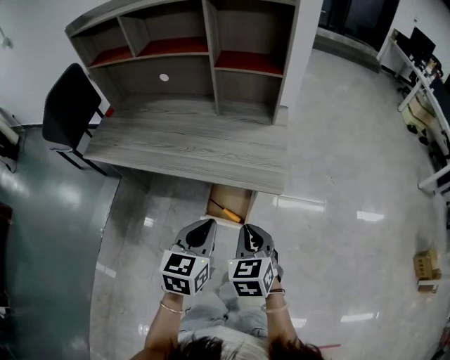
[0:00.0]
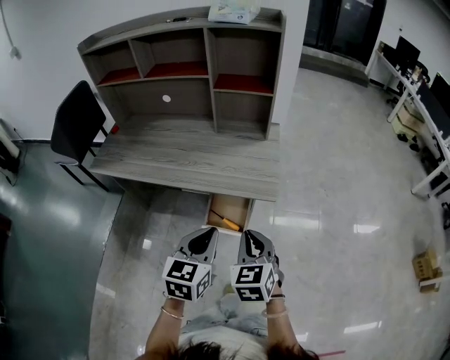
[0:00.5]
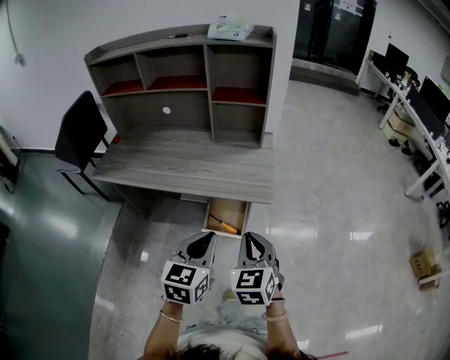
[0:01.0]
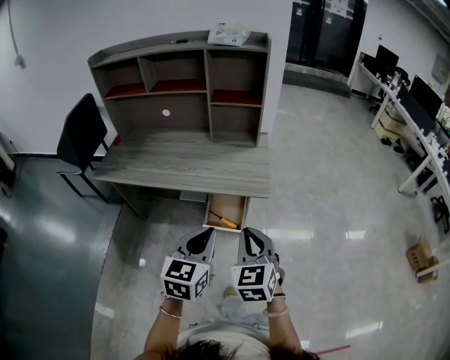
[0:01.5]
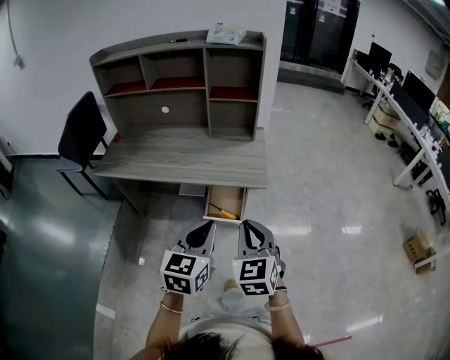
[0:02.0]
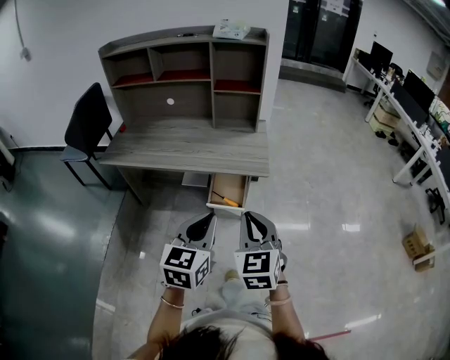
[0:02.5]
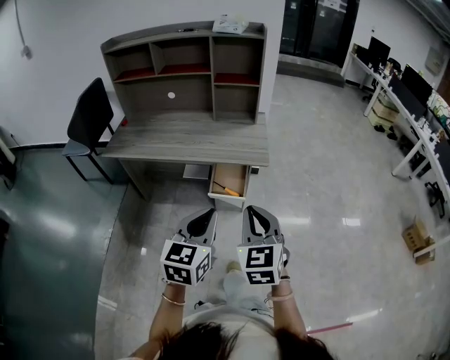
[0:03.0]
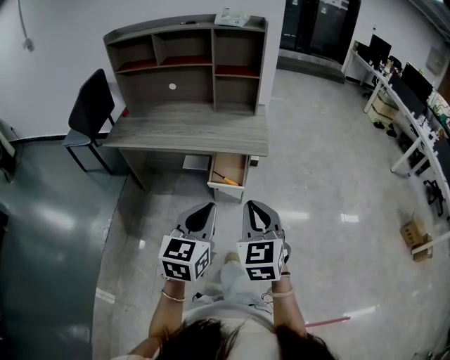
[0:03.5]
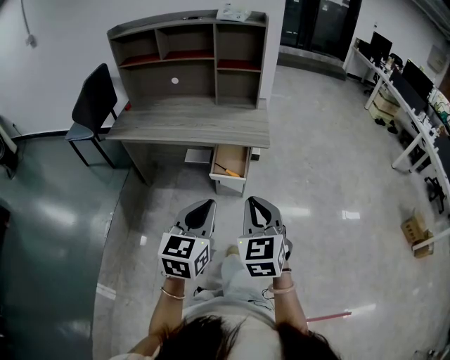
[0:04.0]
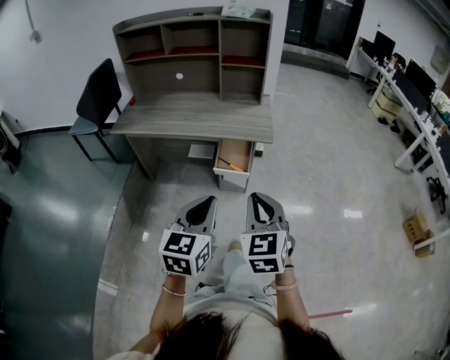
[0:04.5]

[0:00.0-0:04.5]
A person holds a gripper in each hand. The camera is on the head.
0:00.0 to 0:02.0: The grippers both shift backward and upward by some 20 cm.
0:02.0 to 0:04.5: The grippers both shift backward by roughly 15 cm.

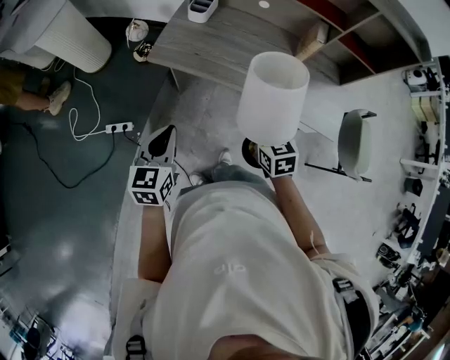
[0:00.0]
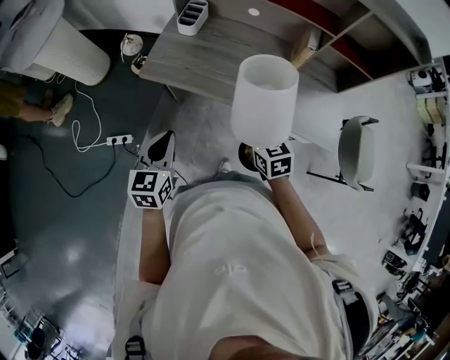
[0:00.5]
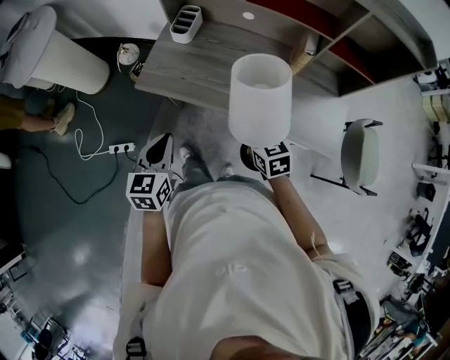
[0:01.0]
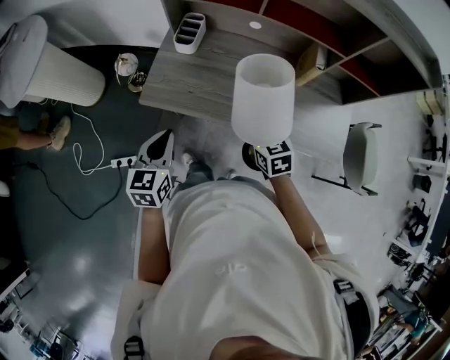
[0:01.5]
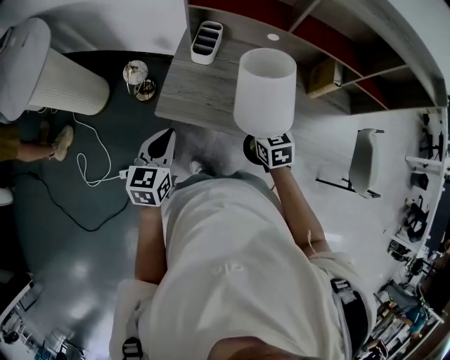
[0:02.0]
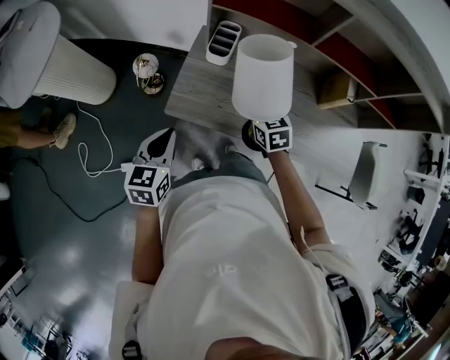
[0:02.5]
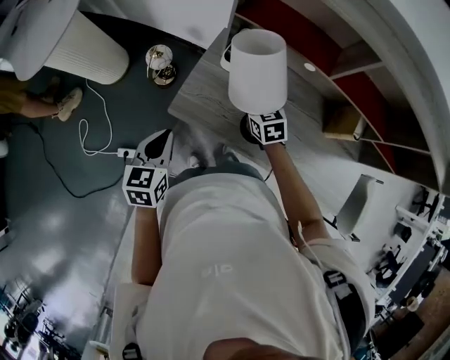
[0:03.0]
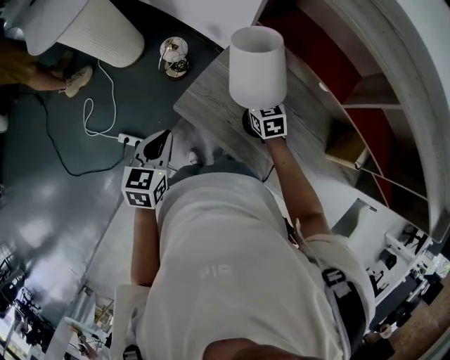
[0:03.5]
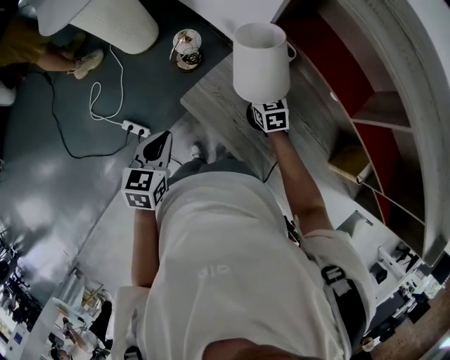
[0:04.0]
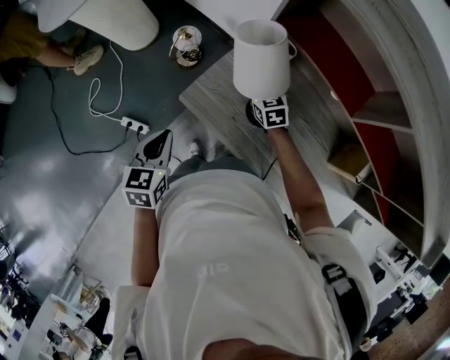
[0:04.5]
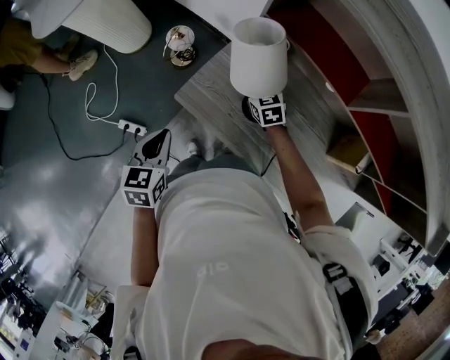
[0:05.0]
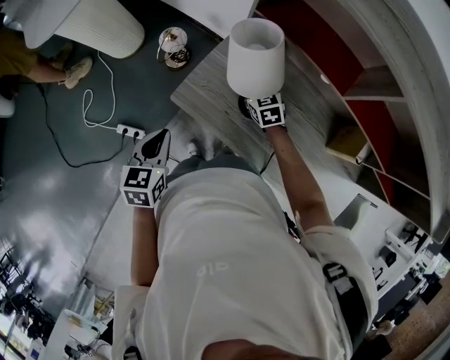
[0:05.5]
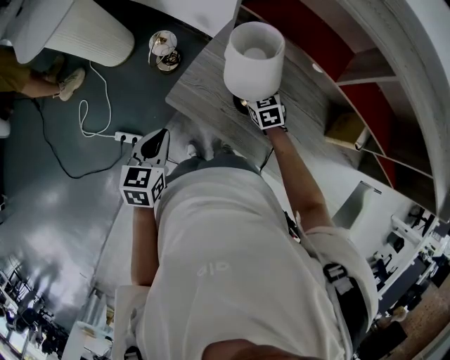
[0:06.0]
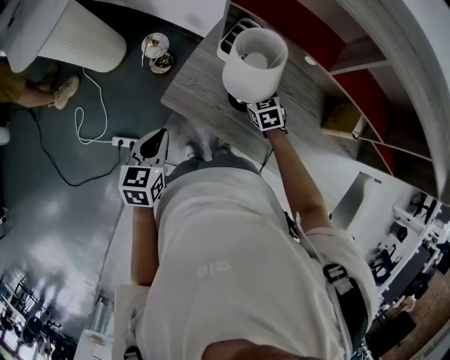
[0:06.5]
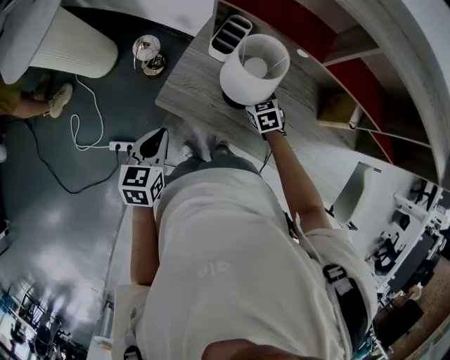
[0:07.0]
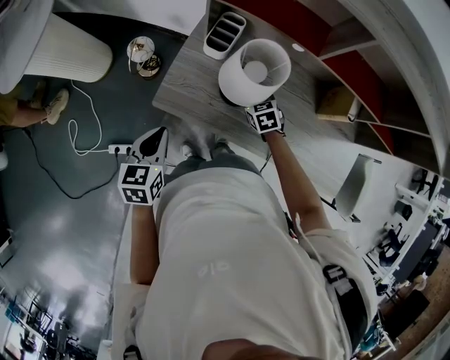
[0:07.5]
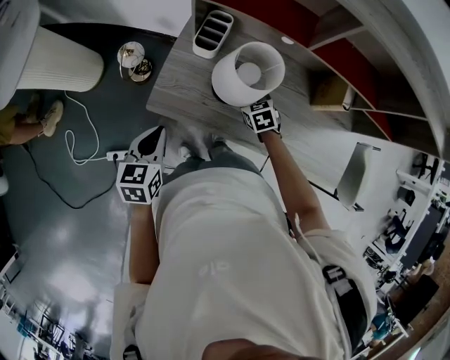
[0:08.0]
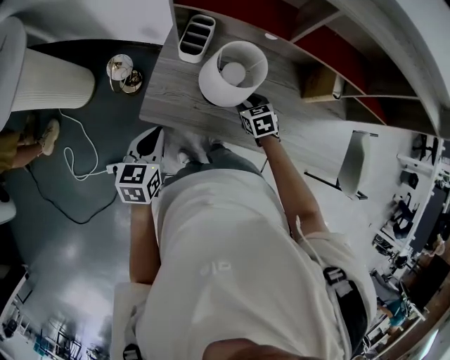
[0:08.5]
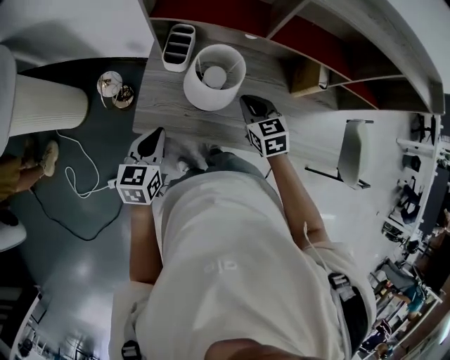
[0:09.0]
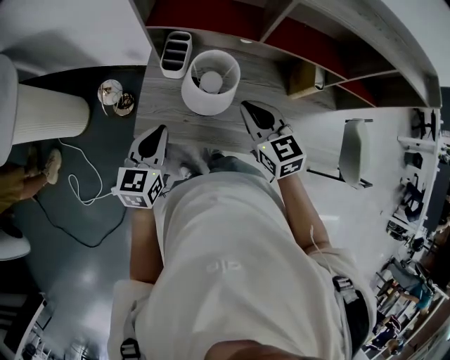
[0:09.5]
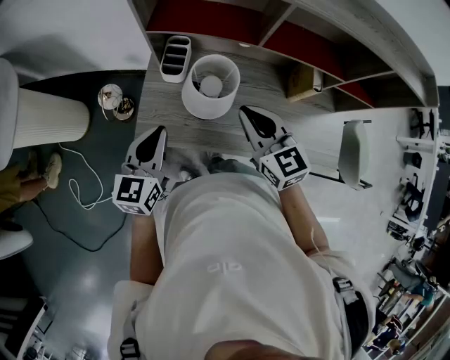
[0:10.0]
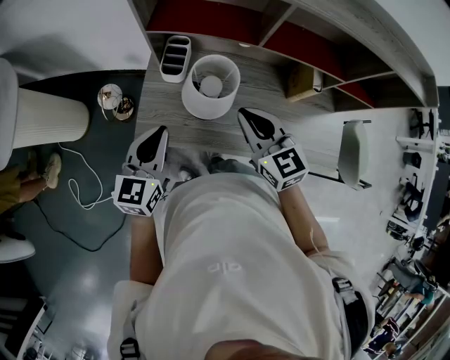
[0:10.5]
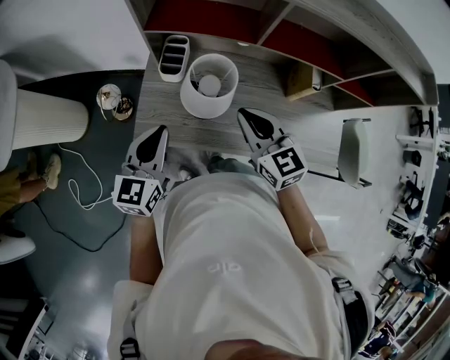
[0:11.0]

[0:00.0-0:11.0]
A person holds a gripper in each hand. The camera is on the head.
0:00.0 to 0:02.0: The two grippers go about 25 cm forward.
0:02.0 to 0:03.5: The right gripper heads forward, covering approximately 25 cm, and rotates approximately 30 degrees. Meanwhile the left gripper is displaced forward by roughly 5 cm, and turns by roughly 20 degrees.
0:03.5 to 0:05.5: There are only small adjustments of the grippers.
0:05.5 to 0:07.5: The right gripper shifts roughly 15 cm backward and to the right.
0:07.5 to 0:09.0: The right gripper is displaced upward and to the right by some 15 cm, rotates roughly 20 degrees, and closes up. Meanwhile the left gripper is displaced to the right by roughly 5 cm.
0:09.0 to 0:11.0: Both grippers travel together upward, roughly 10 cm.

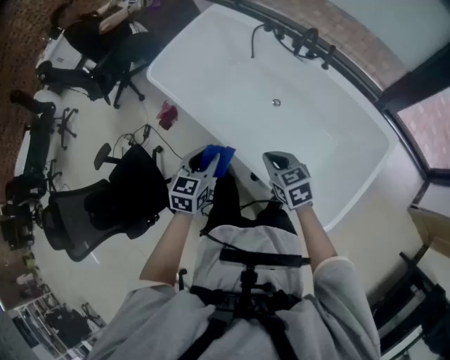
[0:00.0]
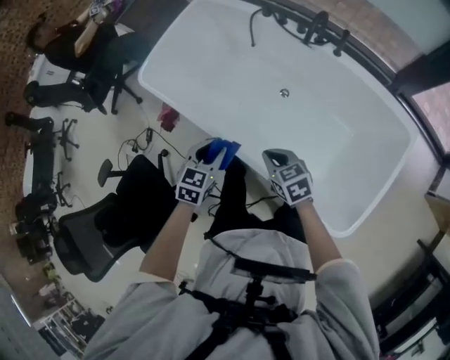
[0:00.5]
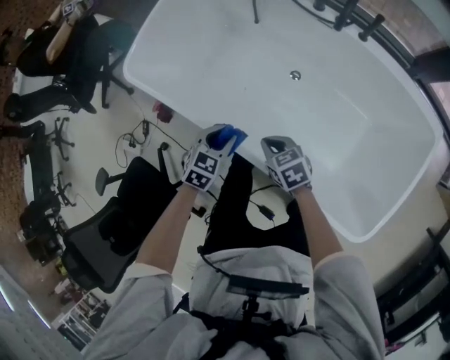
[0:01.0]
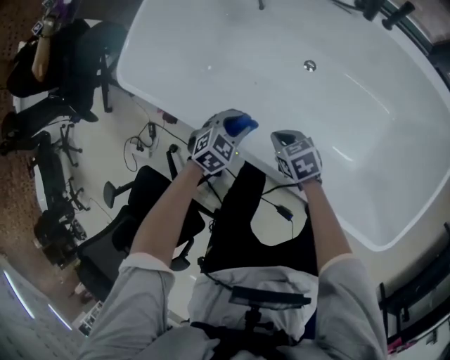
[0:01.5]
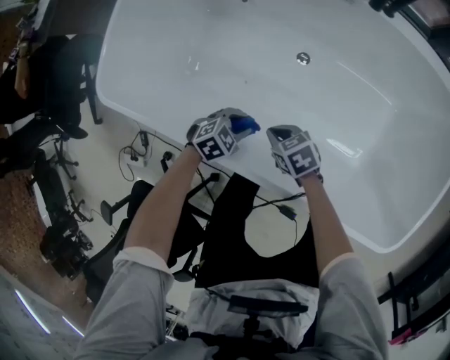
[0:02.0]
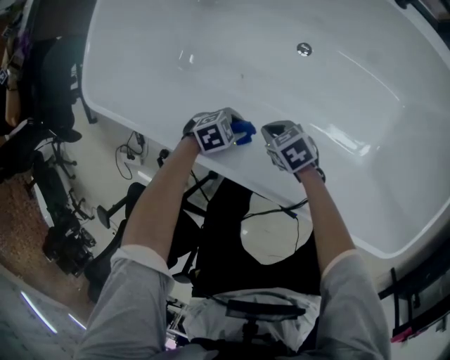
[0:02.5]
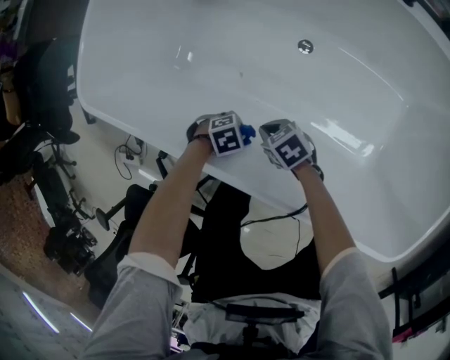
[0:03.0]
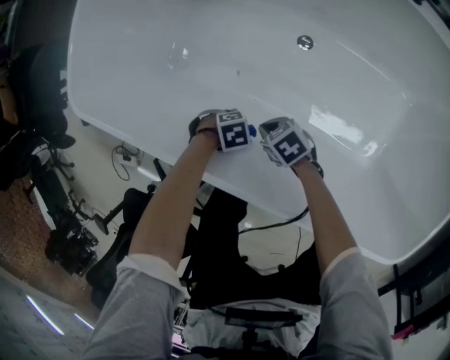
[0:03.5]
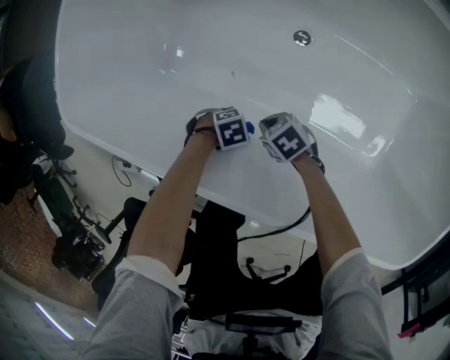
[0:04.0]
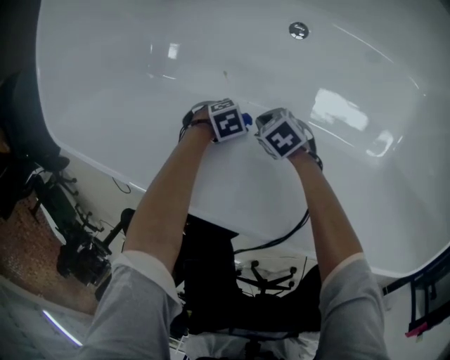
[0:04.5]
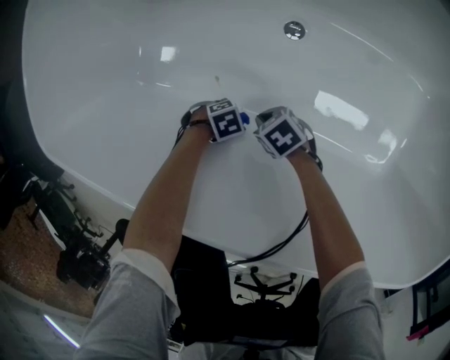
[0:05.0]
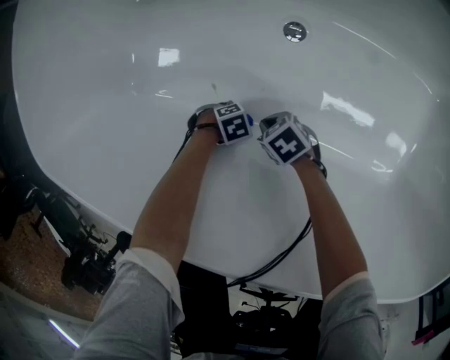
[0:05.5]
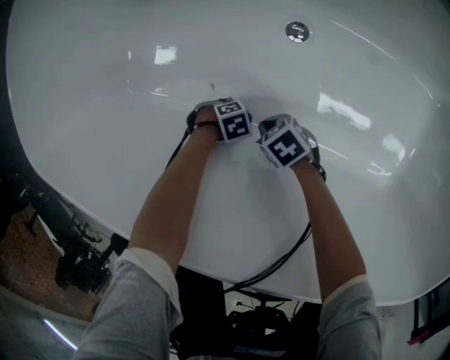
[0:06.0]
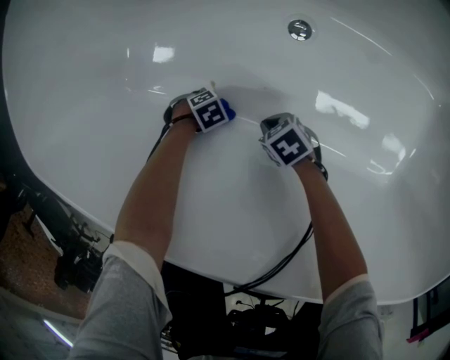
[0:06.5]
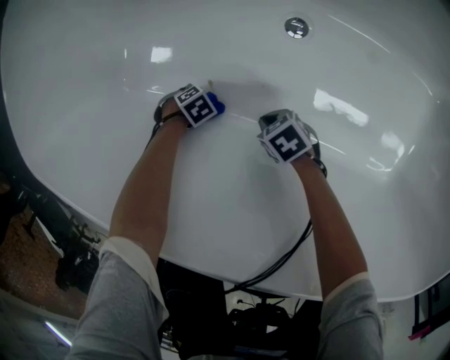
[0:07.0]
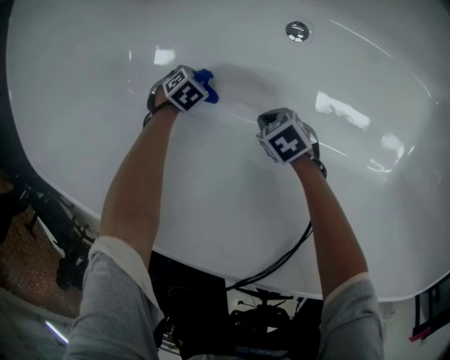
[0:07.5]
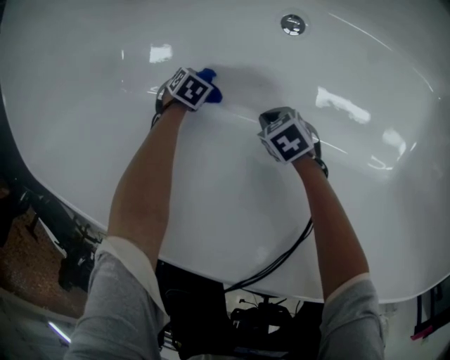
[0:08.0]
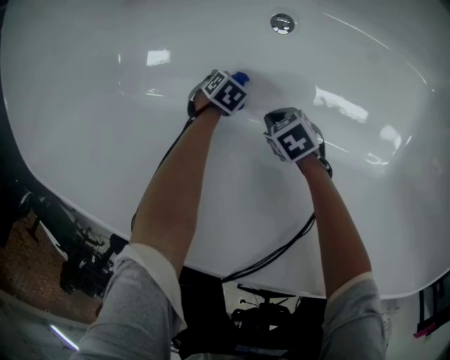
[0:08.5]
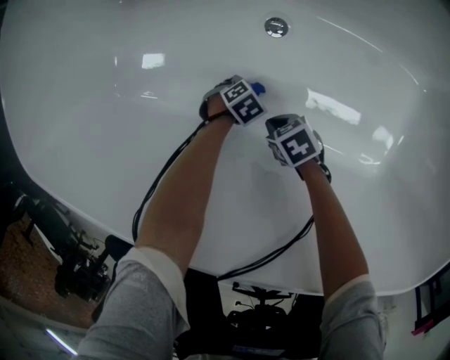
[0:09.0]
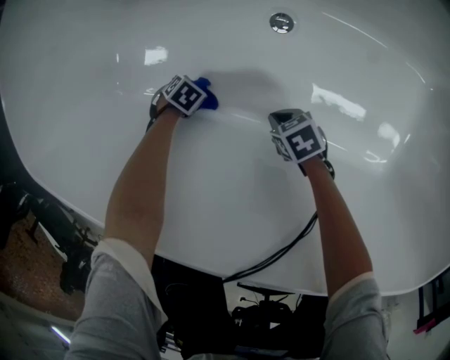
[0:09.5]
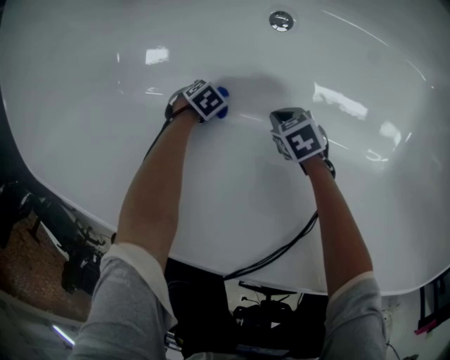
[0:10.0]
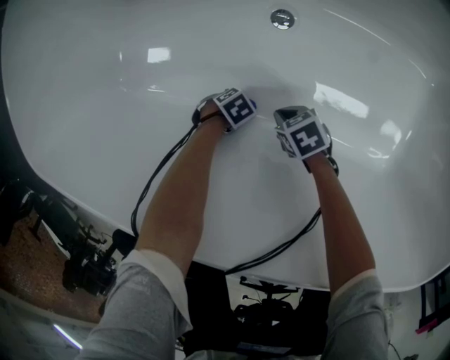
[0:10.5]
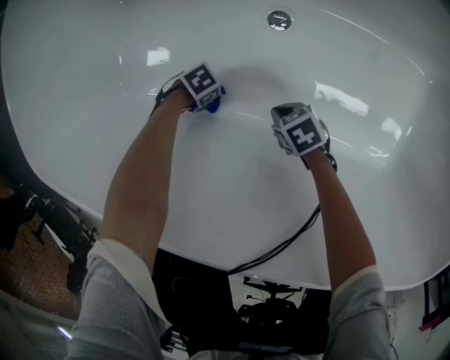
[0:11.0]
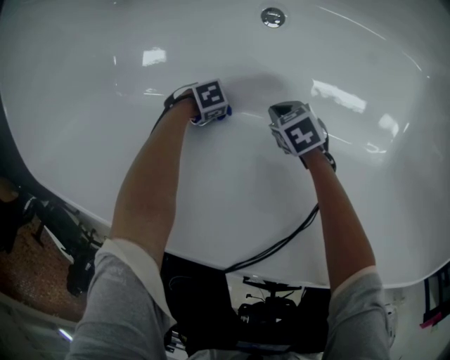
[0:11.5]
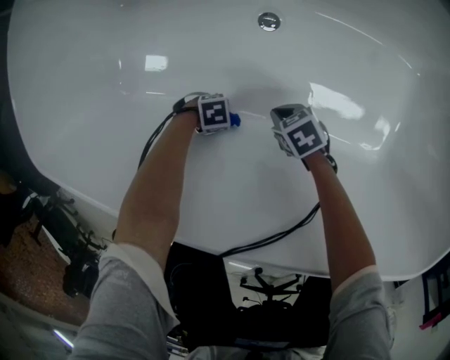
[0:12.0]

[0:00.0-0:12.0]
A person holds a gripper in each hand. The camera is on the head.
0:00.0 to 0:02.0: The right gripper shifts approximately 35 cm downward, and rotates roughly 20 degrees.
0:02.0 to 0:04.0: The right gripper is displaced downward by approximately 15 cm.
0:04.0 to 0:06.0: The right gripper moves downward, approximately 15 cm.
0:08.0 to 0:10.0: The right gripper changes place by some 5 cm.
